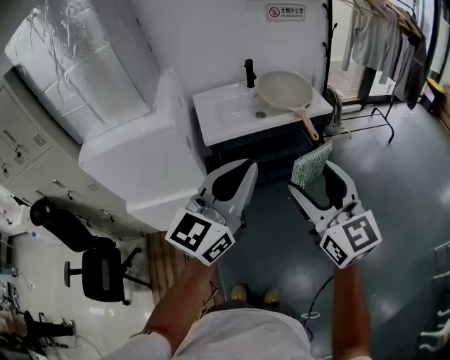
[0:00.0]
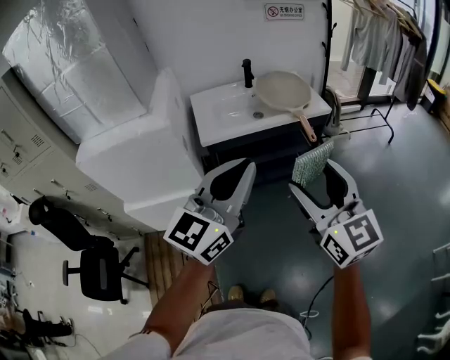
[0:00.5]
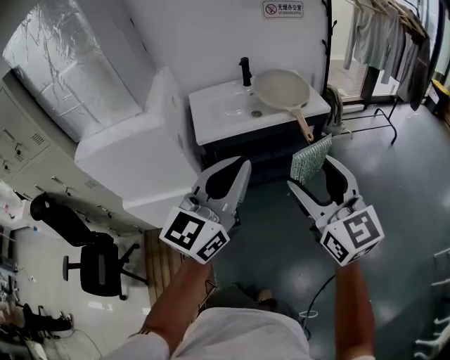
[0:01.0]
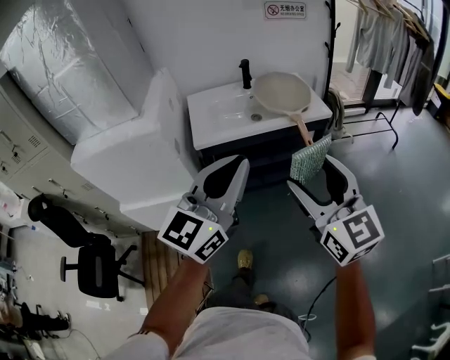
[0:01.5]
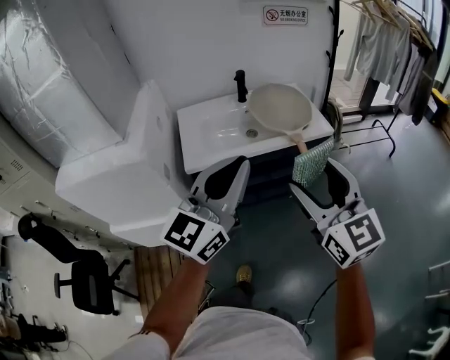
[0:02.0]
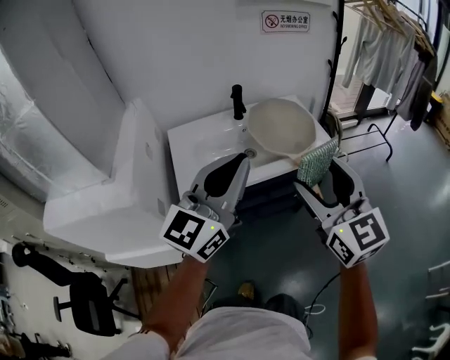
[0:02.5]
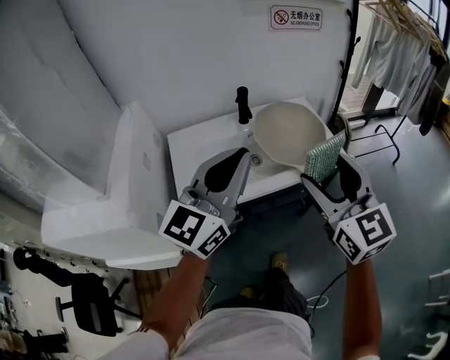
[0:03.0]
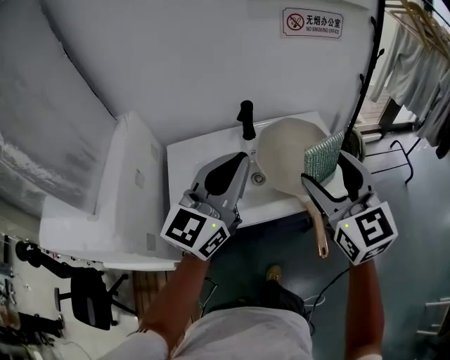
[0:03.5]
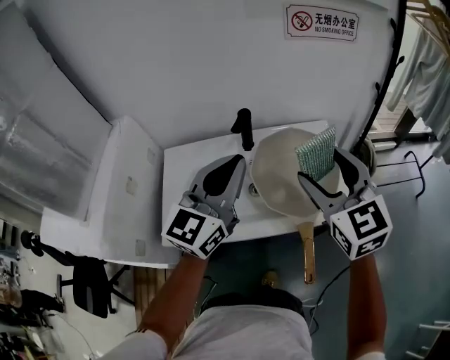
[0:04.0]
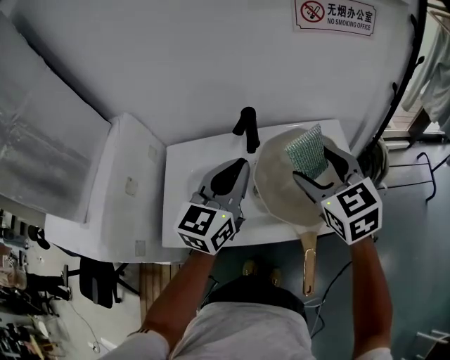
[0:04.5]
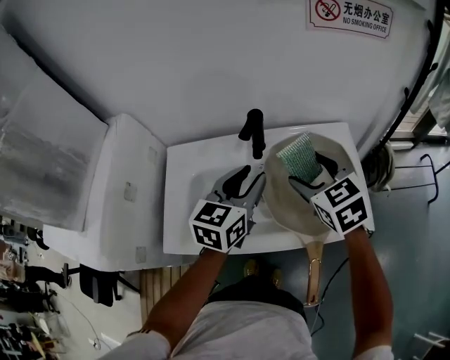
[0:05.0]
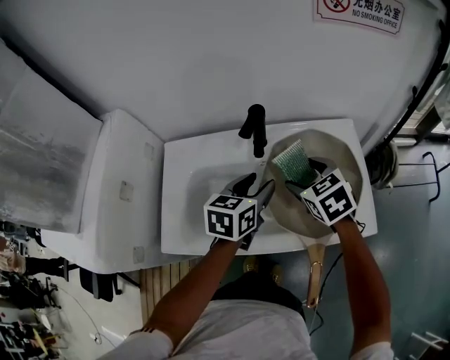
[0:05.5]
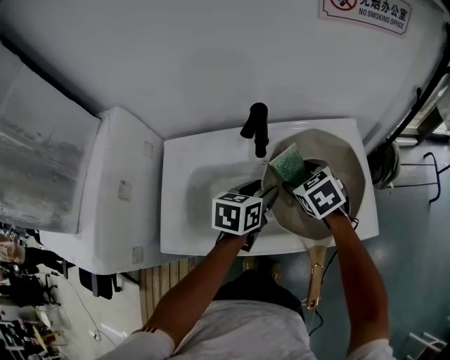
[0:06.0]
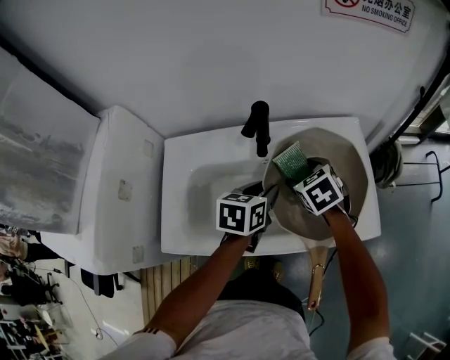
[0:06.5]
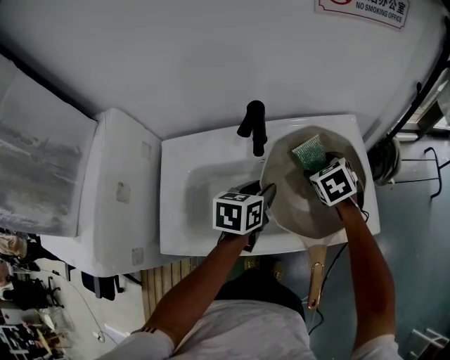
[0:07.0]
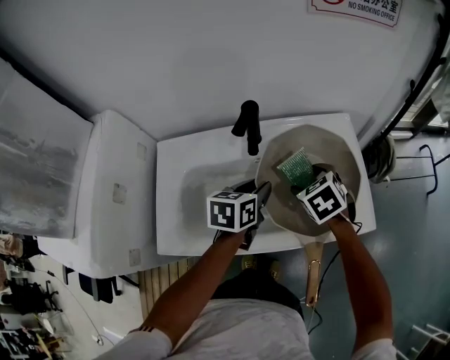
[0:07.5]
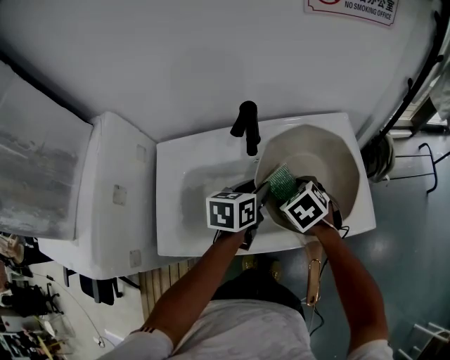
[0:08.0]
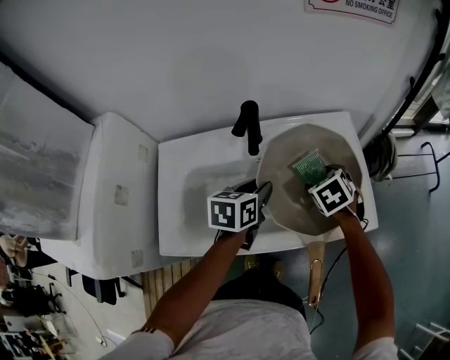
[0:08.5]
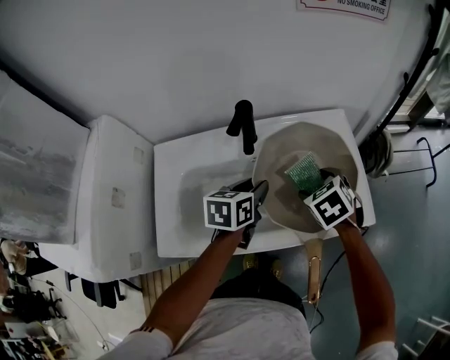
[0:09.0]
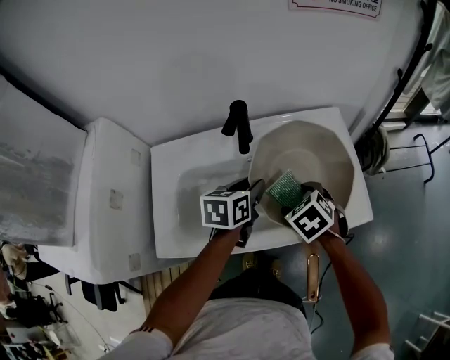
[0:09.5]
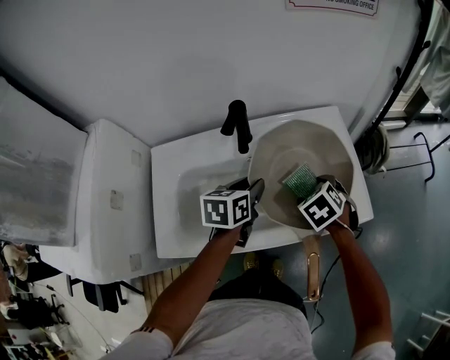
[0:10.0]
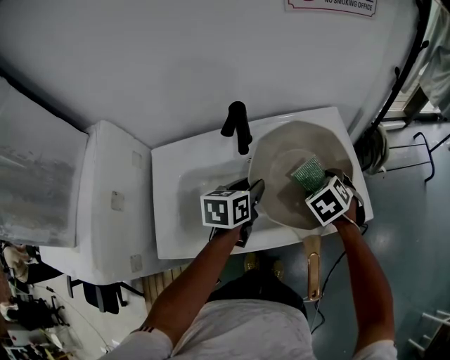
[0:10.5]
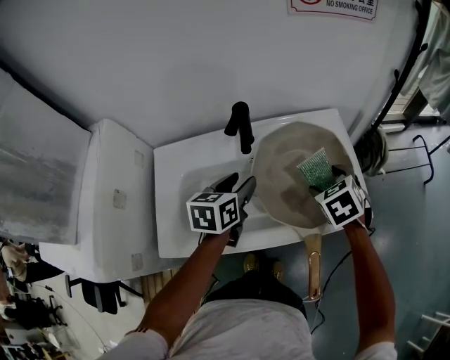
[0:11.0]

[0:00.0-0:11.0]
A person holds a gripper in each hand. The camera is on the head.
0:00.0 to 0:02.0: The two grippers go some 15 cm forward.
0:02.0 to 0:03.5: Both grippers travel together forward, some 30 cm.
0:03.5 to 0:05.5: Both grippers move downward and forward, approximately 30 cm. The right gripper tips its fingers downward by some 40 degrees, while the left gripper tilts its fingers roughly 40 degrees downward, and opens up.
0:05.5 to 0:07.5: The right gripper travels downward by approximately 5 cm.
0:07.5 to 0:09.0: The grippers move only a little.

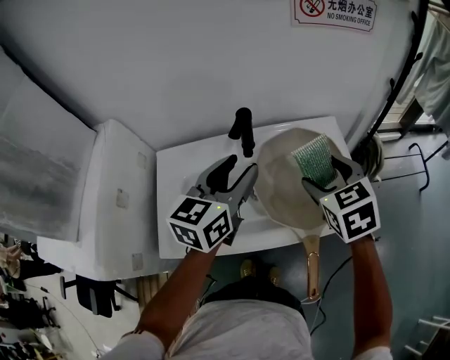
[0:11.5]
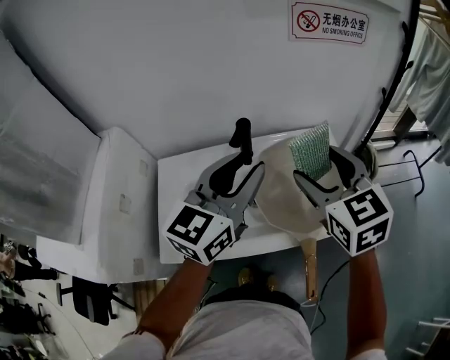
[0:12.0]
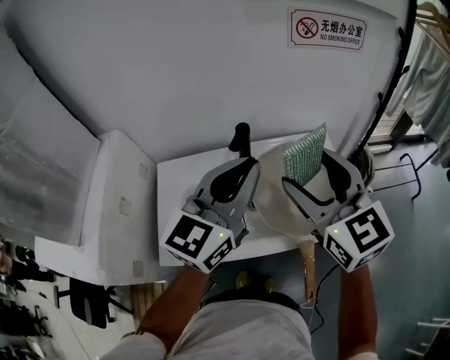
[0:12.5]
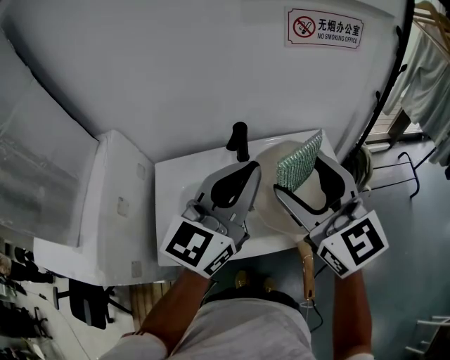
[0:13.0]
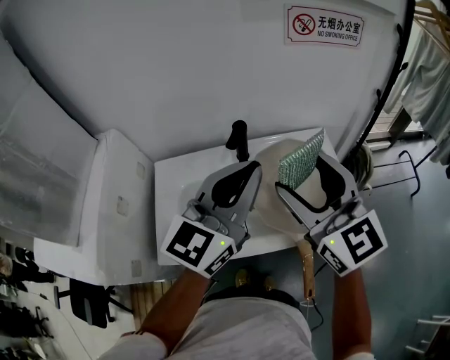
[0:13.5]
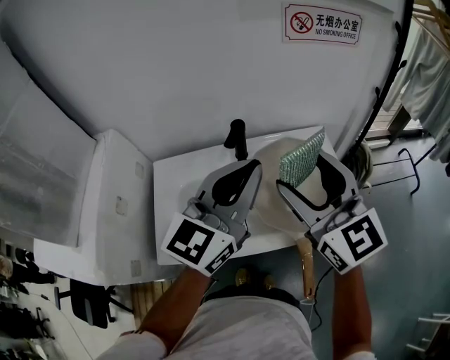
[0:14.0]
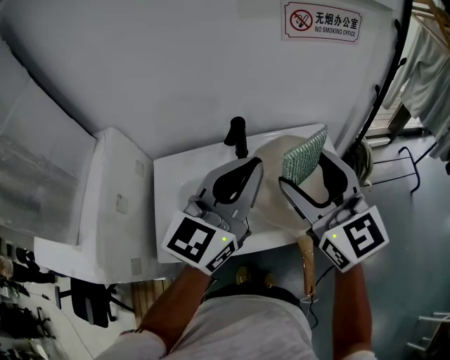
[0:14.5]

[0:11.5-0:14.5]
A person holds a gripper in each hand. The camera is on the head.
0:11.5 to 0:13.0: The right gripper moves upward, to the left and backward, some 20 cm, and points its fingers about 40 degrees further upward; the left gripper heads upward and backward, covering about 15 cm, changes its angle by roughly 20 degrees, and closes up.
0:13.0 to 0:14.5: There are only small adjustments of the grippers.

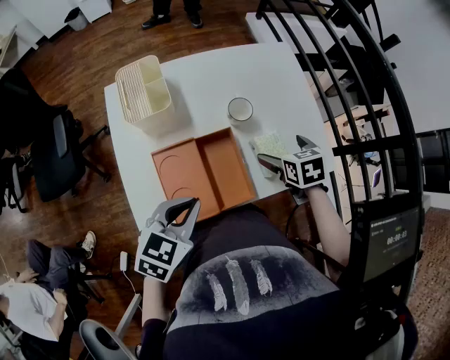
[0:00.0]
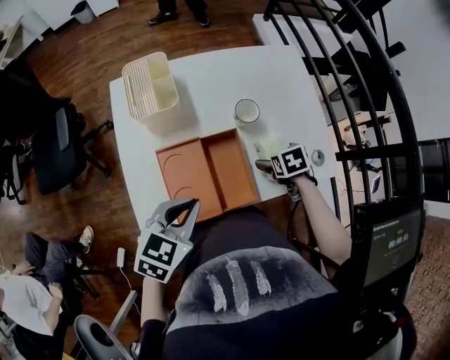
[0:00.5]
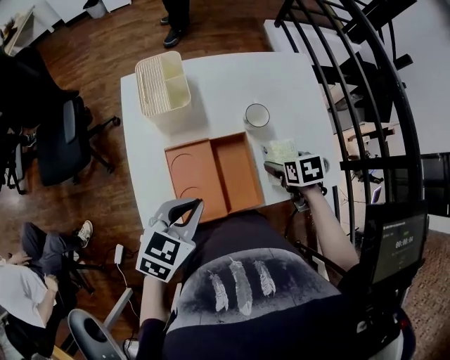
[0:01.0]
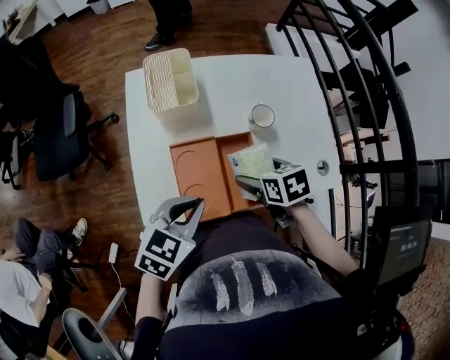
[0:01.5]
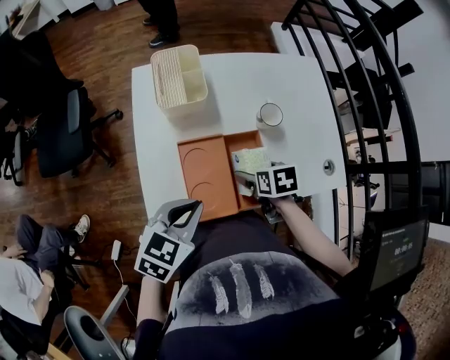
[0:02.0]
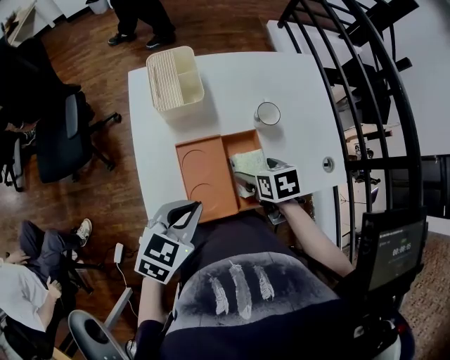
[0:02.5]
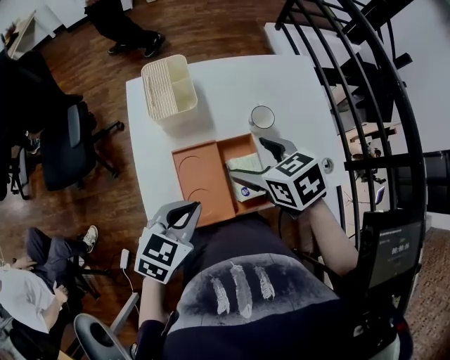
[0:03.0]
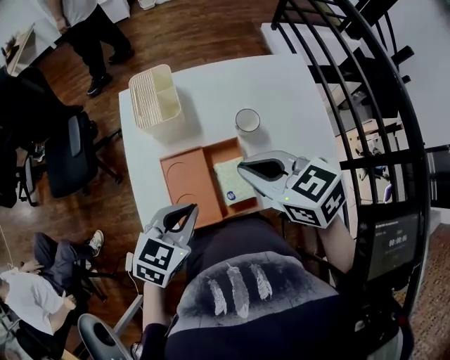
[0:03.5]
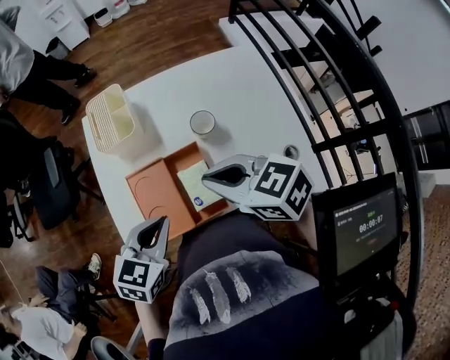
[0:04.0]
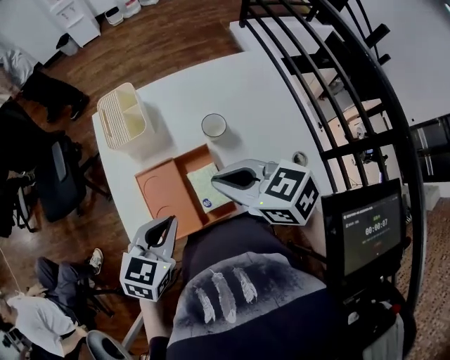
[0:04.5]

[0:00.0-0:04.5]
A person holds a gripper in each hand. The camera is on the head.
0:00.0 to 0:02.0: The right gripper goes some 15 cm to the left and backward. Meanwhile the left gripper shifts roughly 5 cm to the left.
0:02.0 to 0:04.5: The left gripper heads to the right, covering some 5 cm, while the right gripper is displaced upward by some 20 cm, tilts its fingers about 30 degrees upward, and closes its fingers.

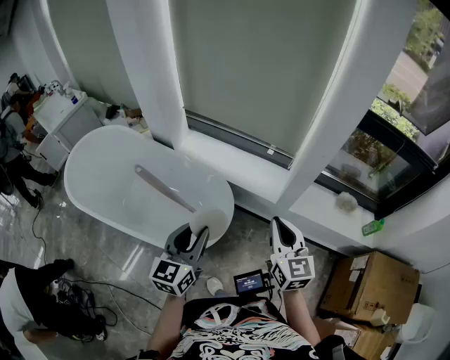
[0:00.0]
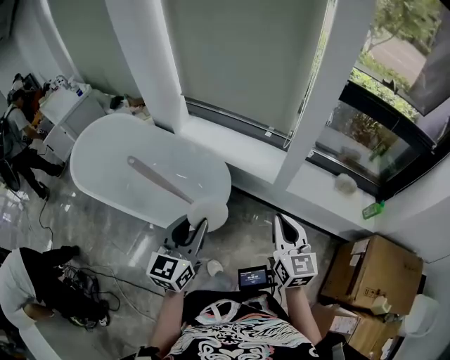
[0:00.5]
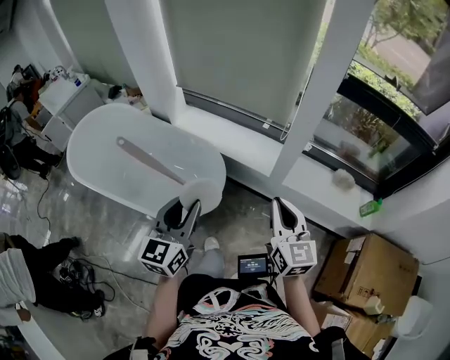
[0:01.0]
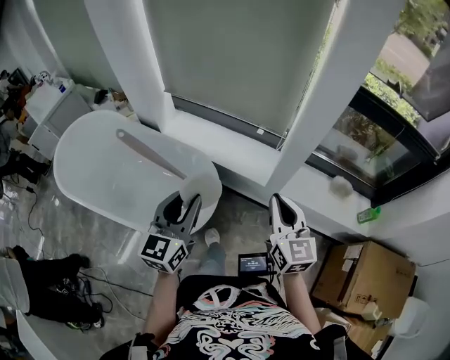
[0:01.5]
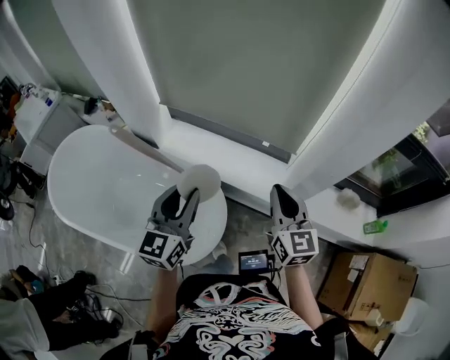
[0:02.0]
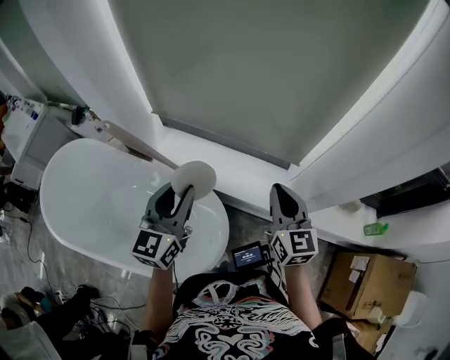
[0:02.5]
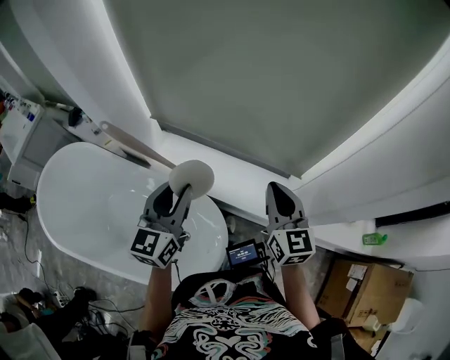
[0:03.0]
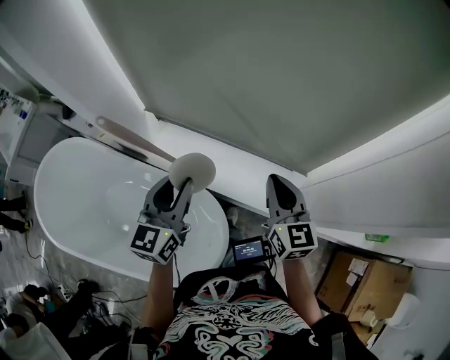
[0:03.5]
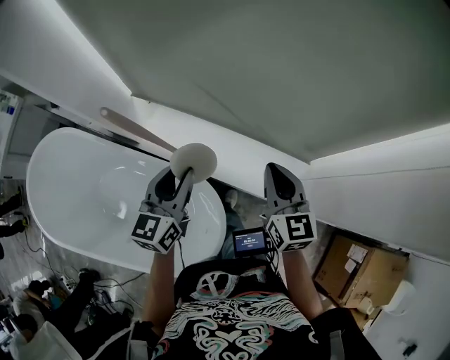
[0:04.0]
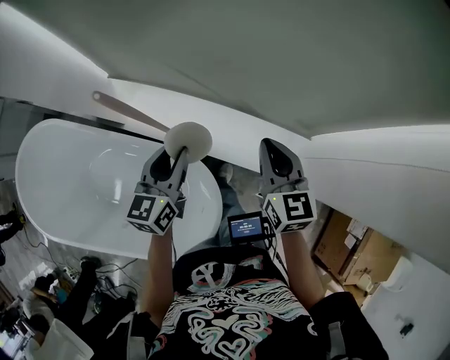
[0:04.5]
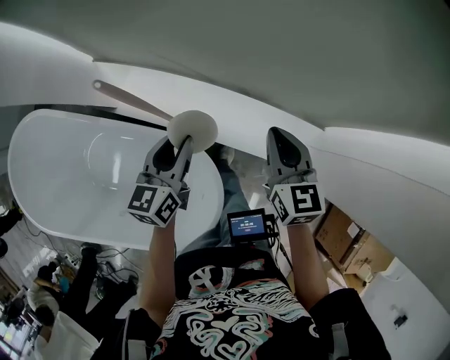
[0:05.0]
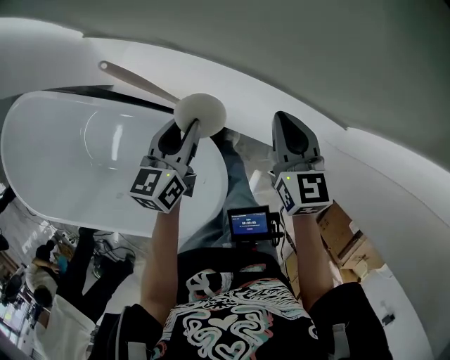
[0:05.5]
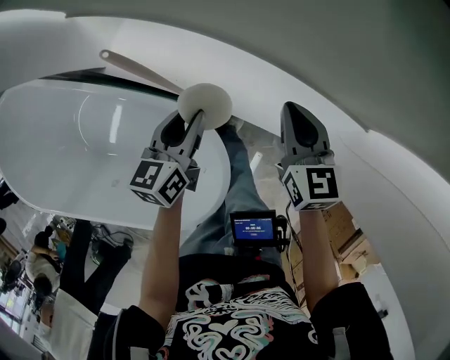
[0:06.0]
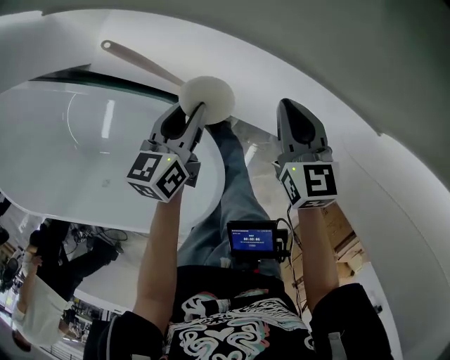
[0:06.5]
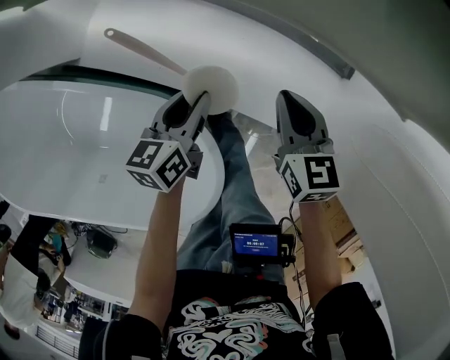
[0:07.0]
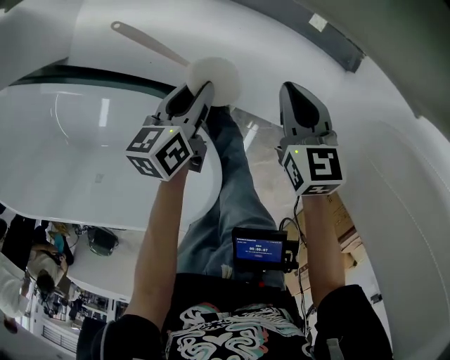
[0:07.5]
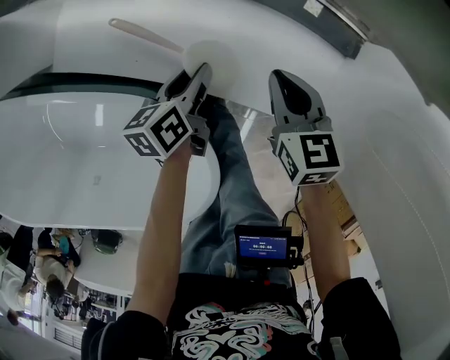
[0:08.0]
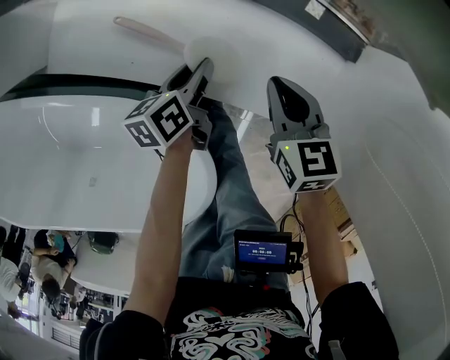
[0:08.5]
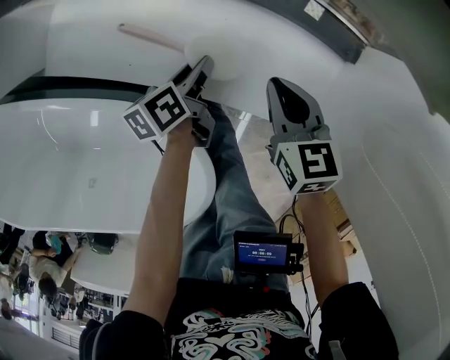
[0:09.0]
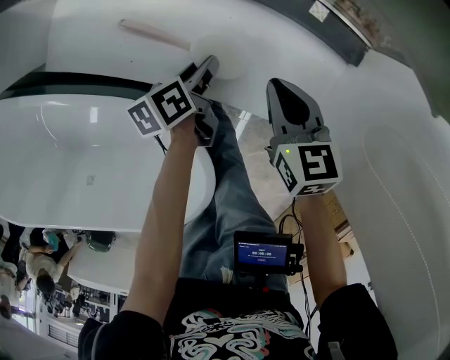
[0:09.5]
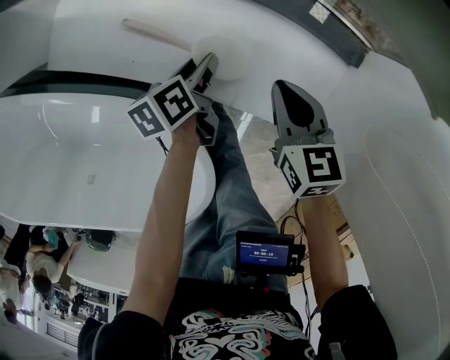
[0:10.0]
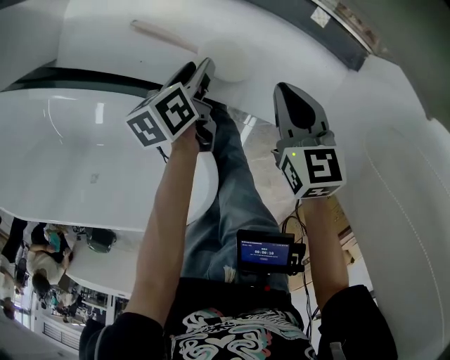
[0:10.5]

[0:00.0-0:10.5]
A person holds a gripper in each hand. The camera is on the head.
0:00.0 to 0:02.0: The grippers both shift forward by about 25 cm.
0:02.0 to 0:04.0: The right gripper heads forward, covering roughly 25 cm. The left gripper heads forward and downward, covering about 25 cm.
0:04.0 to 0:06.5: The grippers both shift downward by approximately 30 cm. The left gripper rotates approximately 30 degrees.
0:06.5 to 0:08.5: Both grippers move downward, roughly 15 cm. The left gripper rotates approximately 20 degrees.
0:08.5 to 0:10.5: The grippers make only small movements.
